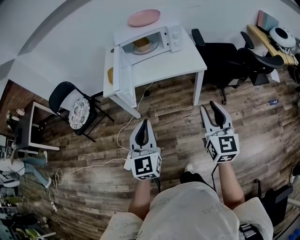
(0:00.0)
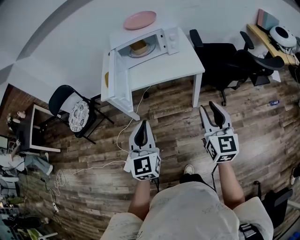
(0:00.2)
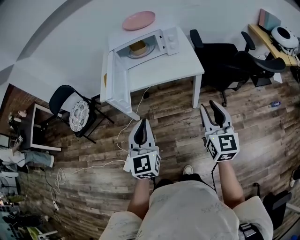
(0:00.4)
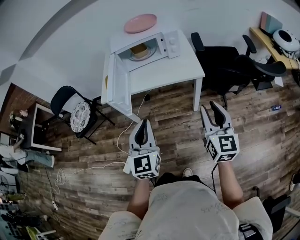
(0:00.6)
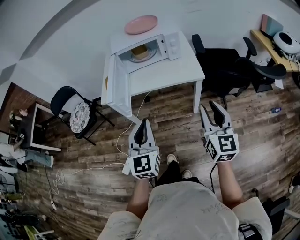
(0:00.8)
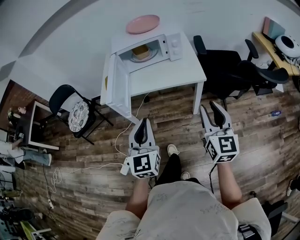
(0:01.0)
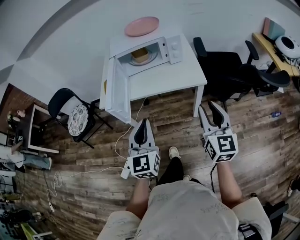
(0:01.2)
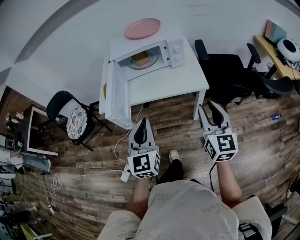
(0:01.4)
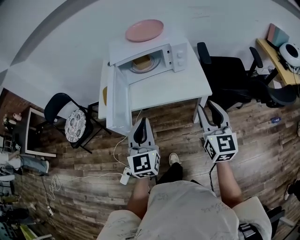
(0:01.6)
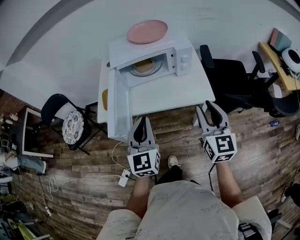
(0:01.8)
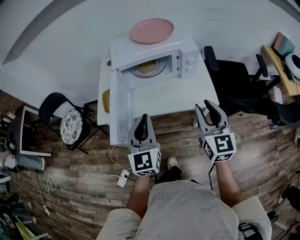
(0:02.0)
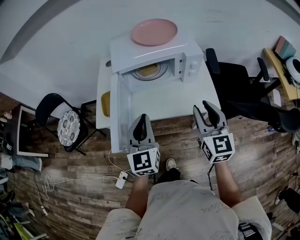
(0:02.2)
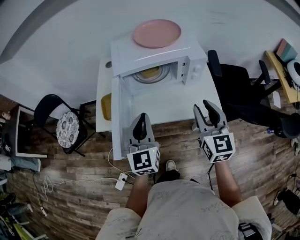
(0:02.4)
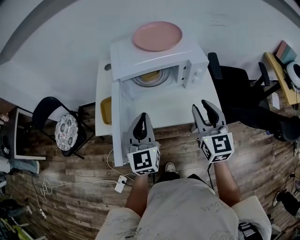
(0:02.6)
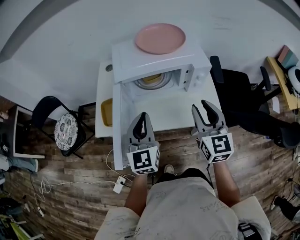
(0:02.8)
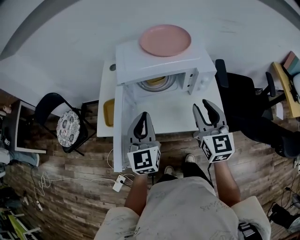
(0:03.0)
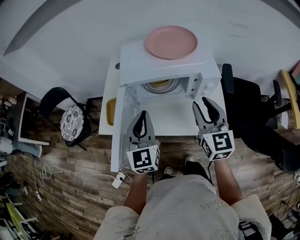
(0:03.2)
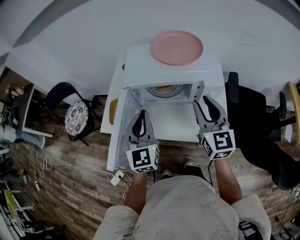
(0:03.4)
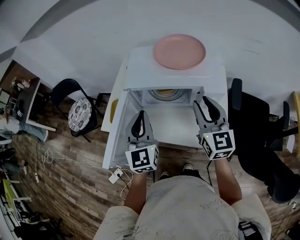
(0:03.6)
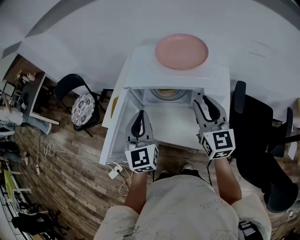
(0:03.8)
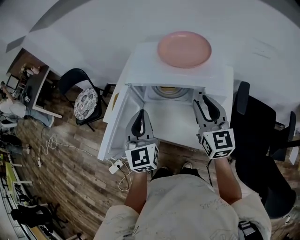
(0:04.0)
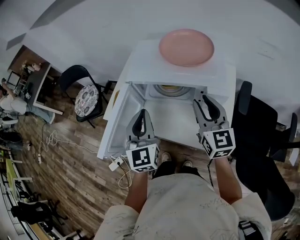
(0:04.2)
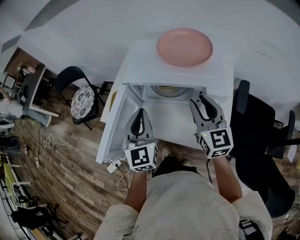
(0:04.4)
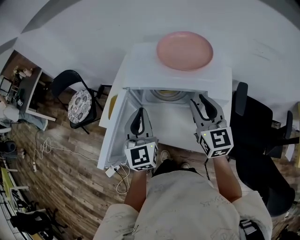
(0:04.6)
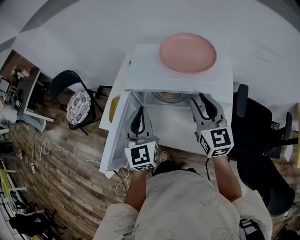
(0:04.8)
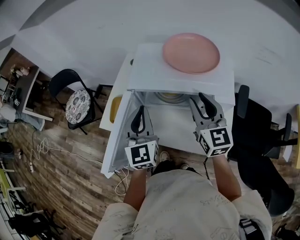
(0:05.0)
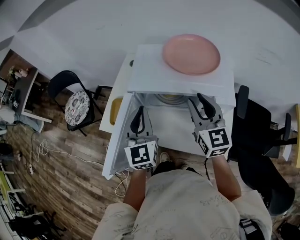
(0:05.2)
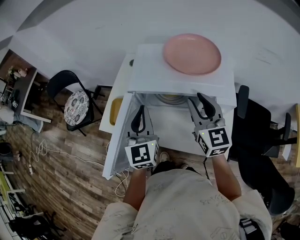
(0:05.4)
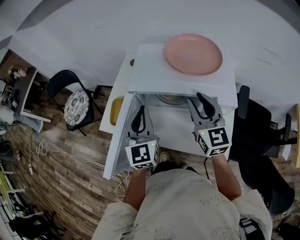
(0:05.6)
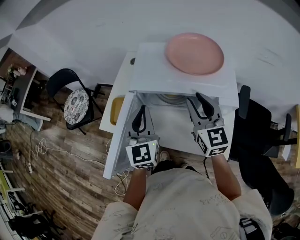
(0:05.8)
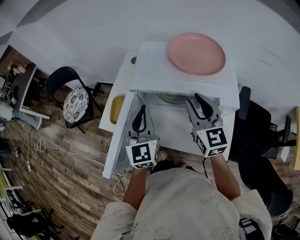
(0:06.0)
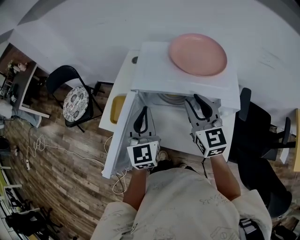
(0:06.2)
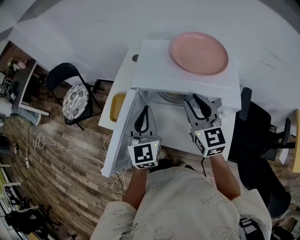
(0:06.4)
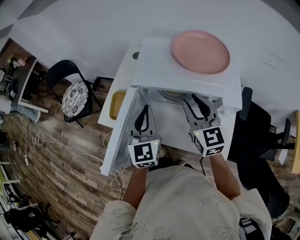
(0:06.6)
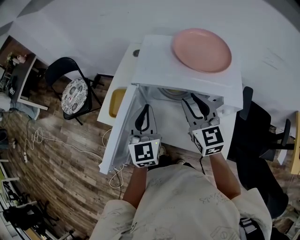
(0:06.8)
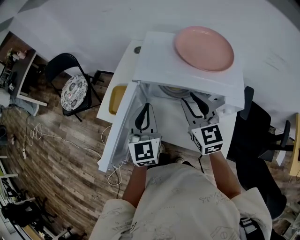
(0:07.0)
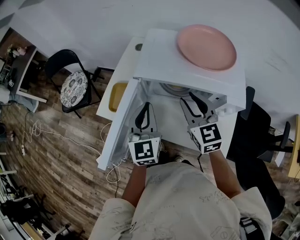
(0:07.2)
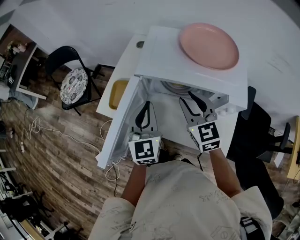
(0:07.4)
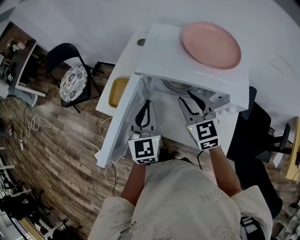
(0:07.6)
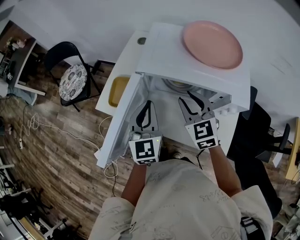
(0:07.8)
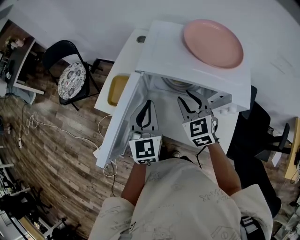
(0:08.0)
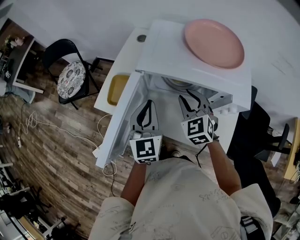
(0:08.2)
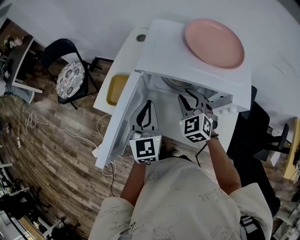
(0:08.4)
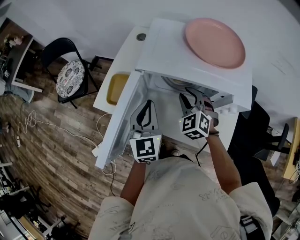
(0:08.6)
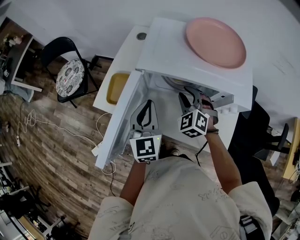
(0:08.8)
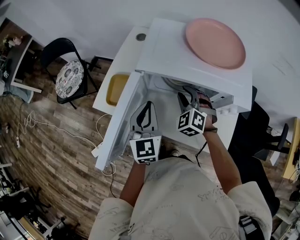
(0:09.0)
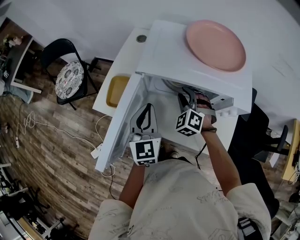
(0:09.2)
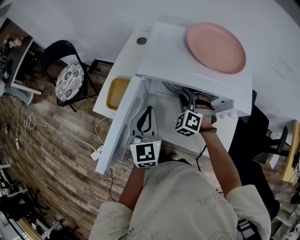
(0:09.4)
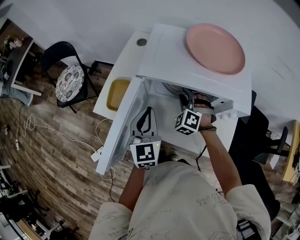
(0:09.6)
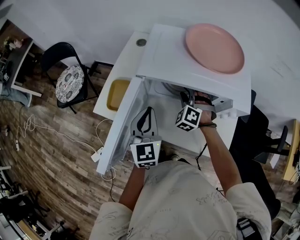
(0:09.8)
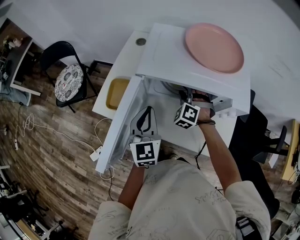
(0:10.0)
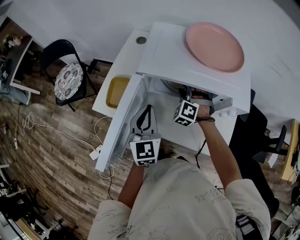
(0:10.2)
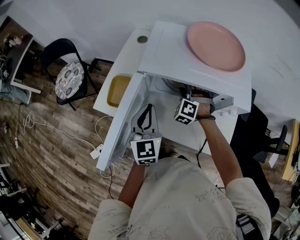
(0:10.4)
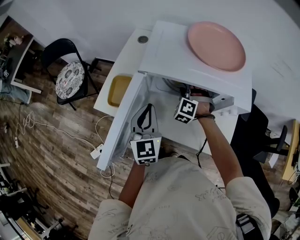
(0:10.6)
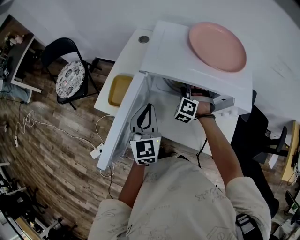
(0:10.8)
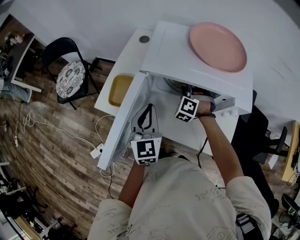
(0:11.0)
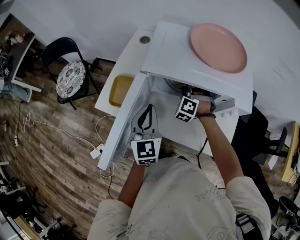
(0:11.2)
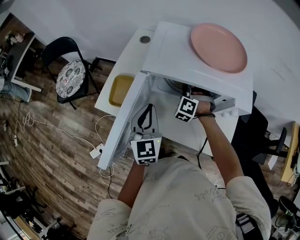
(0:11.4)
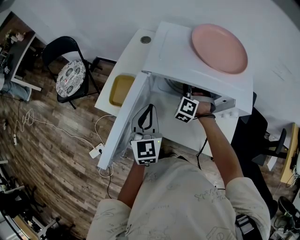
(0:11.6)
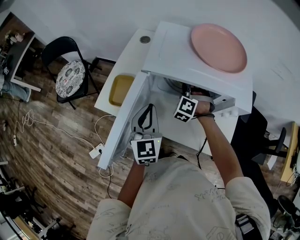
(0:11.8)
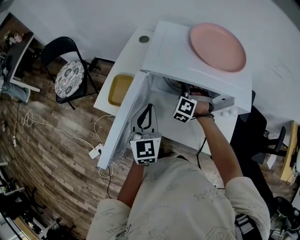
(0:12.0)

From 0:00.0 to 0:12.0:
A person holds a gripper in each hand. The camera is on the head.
From 0:00.0 to 0:01.6: The two grippers go approximately 20 cm forward.
From 0:01.6 to 0:03.0: The grippers both shift forward by roughly 25 cm.
From 0:03.0 to 0:04.4: The left gripper turns by roughly 20 degrees, while the right gripper shifts some 10 cm forward, and rotates about 20 degrees.
From 0:04.4 to 0:06.0: The left gripper shifts about 5 cm forward, while the right gripper shifts roughly 10 cm to the left and forward.
From 0:06.0 to 0:07.6: The right gripper travels downward and to the left by some 10 cm.
From 0:07.6 to 0:09.0: The right gripper goes some 10 cm downward, and swivels about 40 degrees.
From 0:09.0 to 0:10.4: The right gripper moves approximately 5 cm, and rotates about 20 degrees.
From 0:10.4 to 0:12.0: The right gripper closes its fingers.

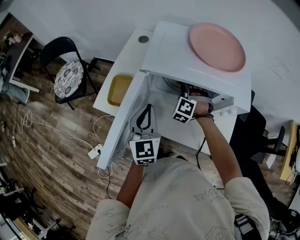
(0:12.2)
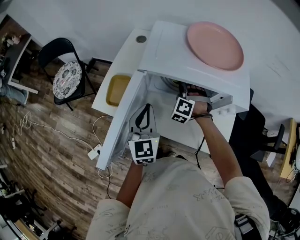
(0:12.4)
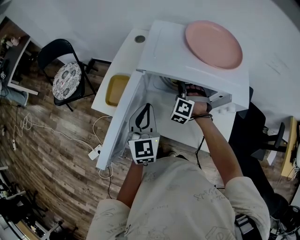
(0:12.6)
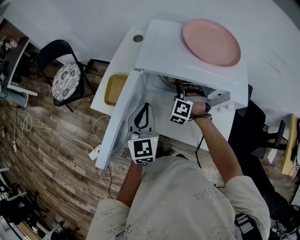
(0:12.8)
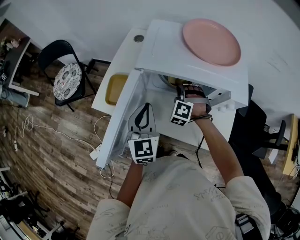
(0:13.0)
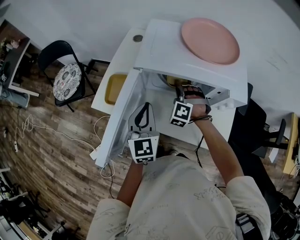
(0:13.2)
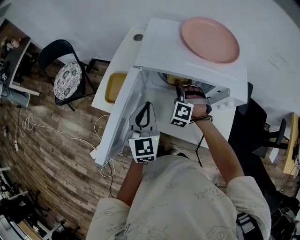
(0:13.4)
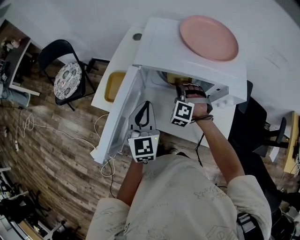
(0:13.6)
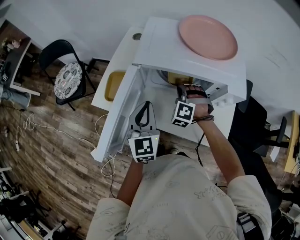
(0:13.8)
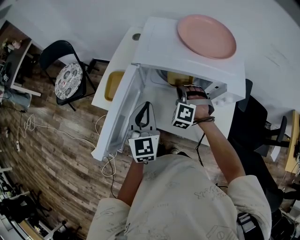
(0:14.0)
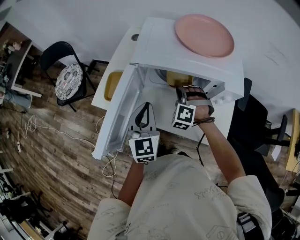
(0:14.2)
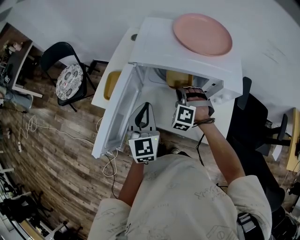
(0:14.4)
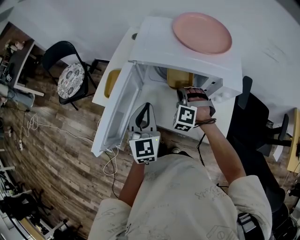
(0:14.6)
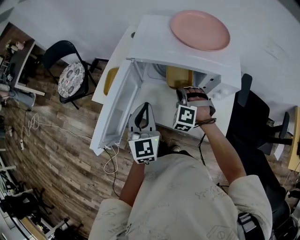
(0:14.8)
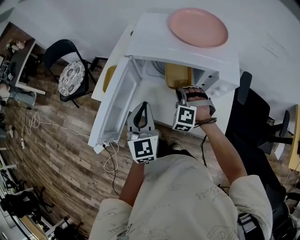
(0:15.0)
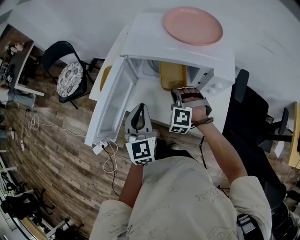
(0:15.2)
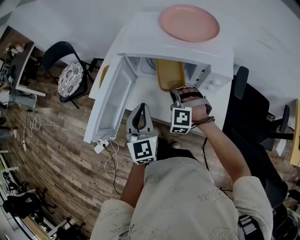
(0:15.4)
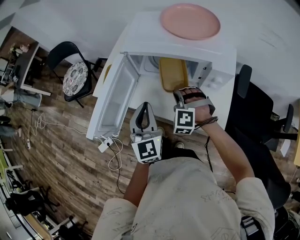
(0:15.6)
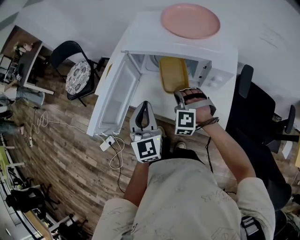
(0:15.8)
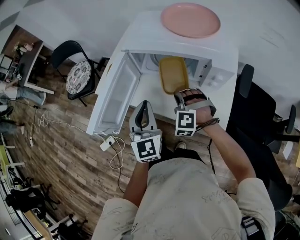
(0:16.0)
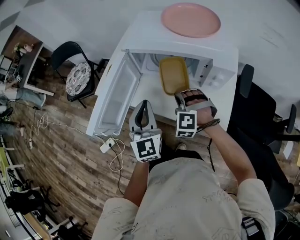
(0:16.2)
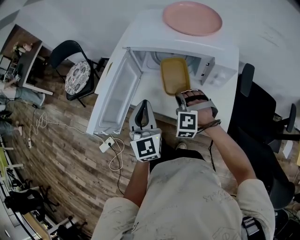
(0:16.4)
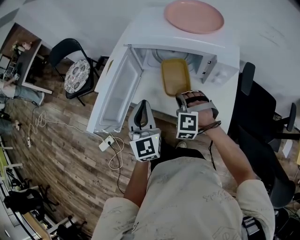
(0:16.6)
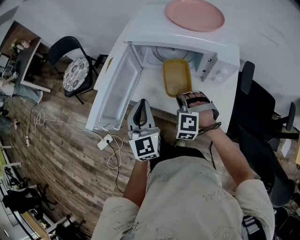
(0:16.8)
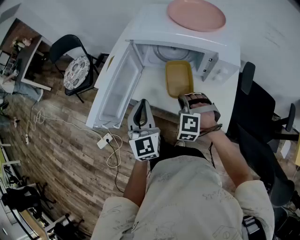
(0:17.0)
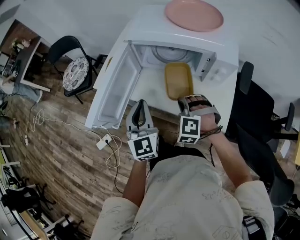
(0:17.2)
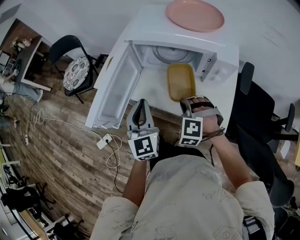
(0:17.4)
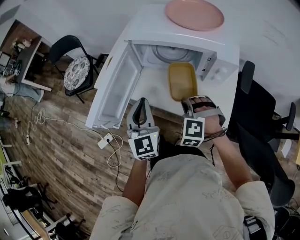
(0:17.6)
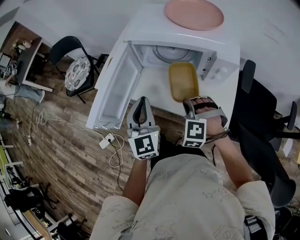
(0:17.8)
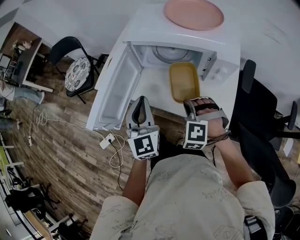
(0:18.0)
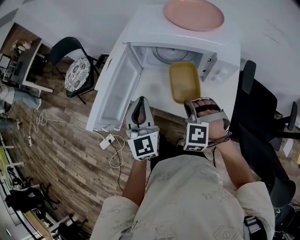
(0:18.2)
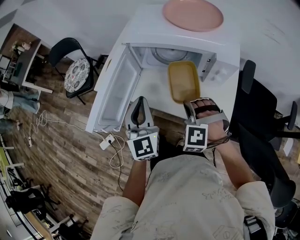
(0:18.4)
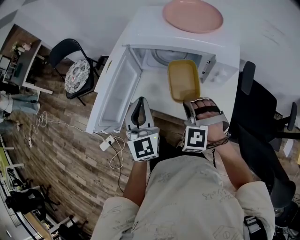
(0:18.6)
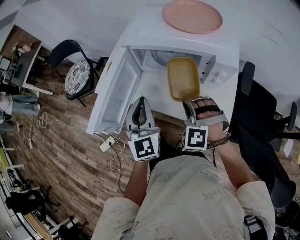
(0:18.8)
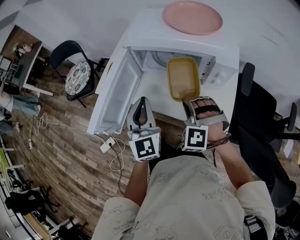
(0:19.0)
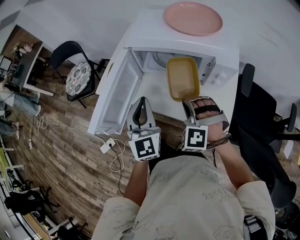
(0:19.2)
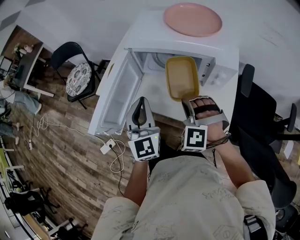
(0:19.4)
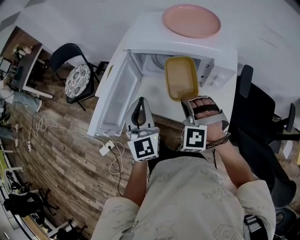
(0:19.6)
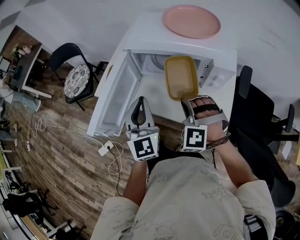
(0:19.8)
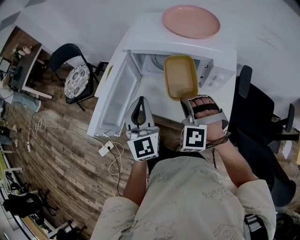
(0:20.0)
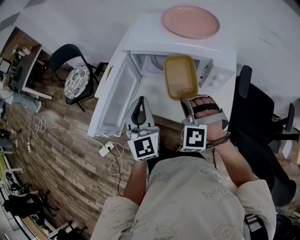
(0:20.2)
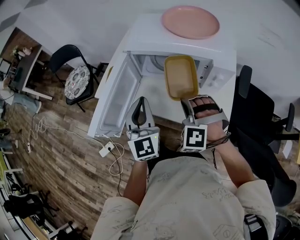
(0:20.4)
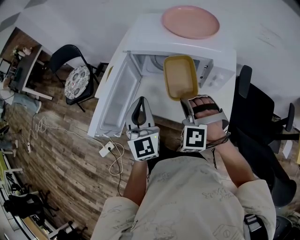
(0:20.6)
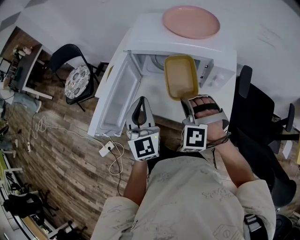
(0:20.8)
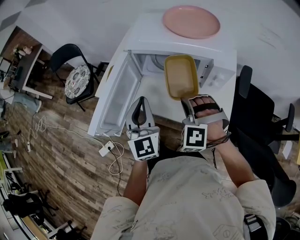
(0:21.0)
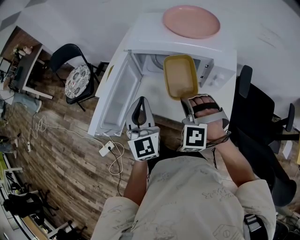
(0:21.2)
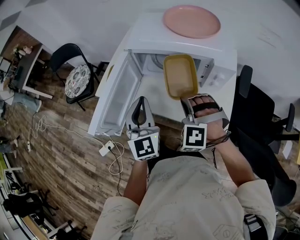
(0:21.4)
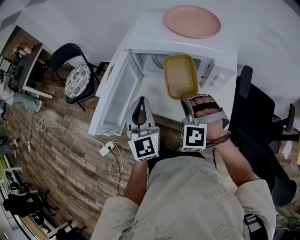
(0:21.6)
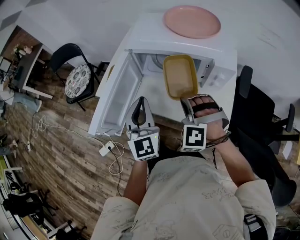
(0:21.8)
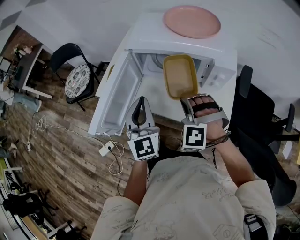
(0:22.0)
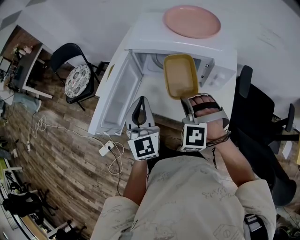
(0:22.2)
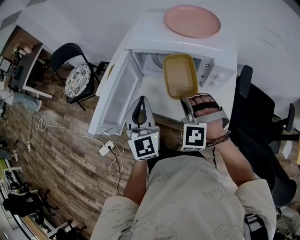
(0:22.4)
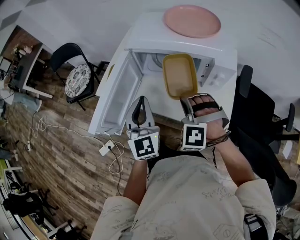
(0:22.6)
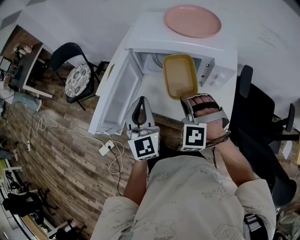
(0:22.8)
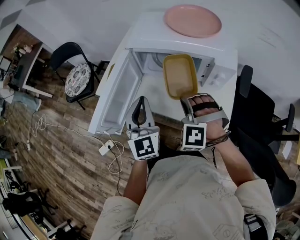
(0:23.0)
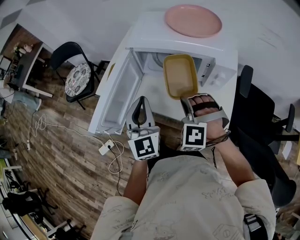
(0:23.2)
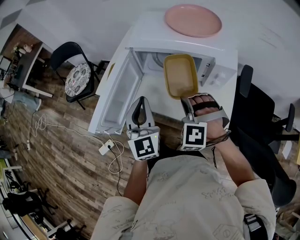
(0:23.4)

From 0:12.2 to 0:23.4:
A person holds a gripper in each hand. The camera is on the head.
From 0:12.2 to 0:13.8: The right gripper travels backward by about 5 cm.
From 0:13.8 to 0:15.4: Both grippers move backward, about 10 cm.
From 0:15.4 to 0:17.0: The right gripper heads backward, covering approximately 10 cm.
From 0:17.0 to 0:18.6: The right gripper shifts by approximately 5 cm.
From 0:18.6 to 0:20.2: The grippers move only a little.
From 0:20.2 to 0:23.4: Both grippers stay about where they are.

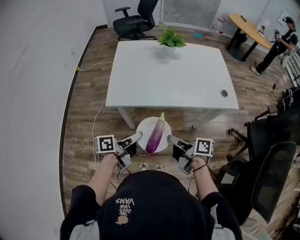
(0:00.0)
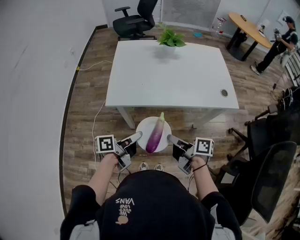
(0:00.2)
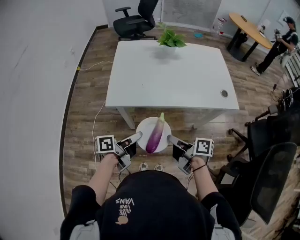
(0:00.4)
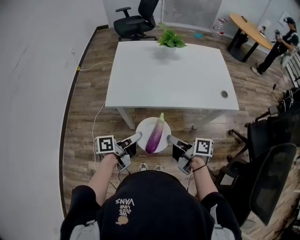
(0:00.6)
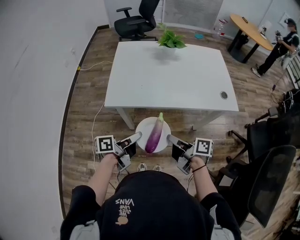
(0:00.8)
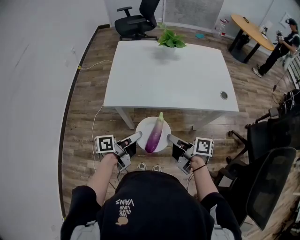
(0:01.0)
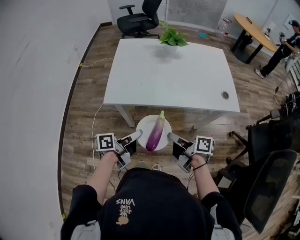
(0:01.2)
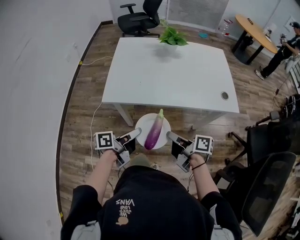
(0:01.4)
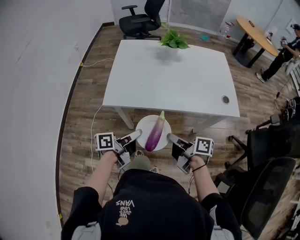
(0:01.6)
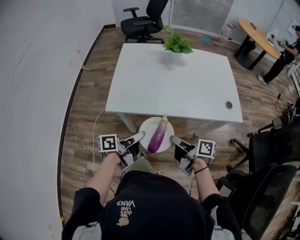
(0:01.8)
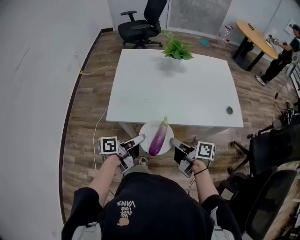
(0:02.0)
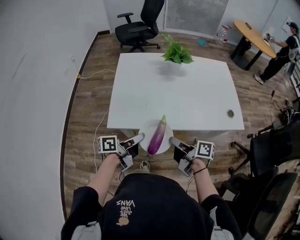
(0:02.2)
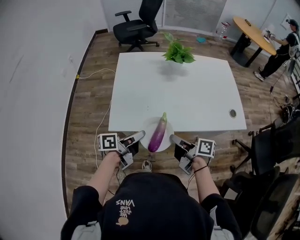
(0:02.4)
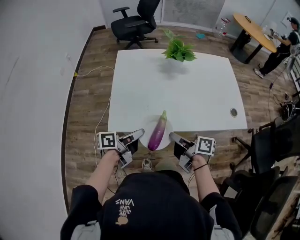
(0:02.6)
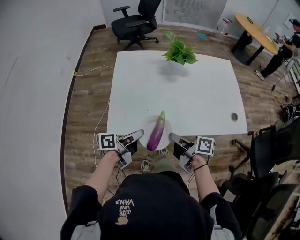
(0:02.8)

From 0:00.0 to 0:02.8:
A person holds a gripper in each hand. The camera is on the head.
From 0:00.0 to 0:01.4: The grippers make only small movements.
From 0:01.4 to 0:02.8: Both grippers move forward, about 20 cm.
